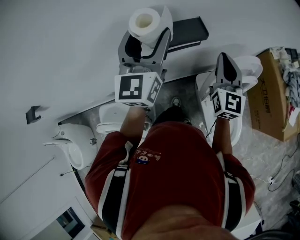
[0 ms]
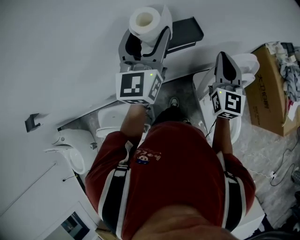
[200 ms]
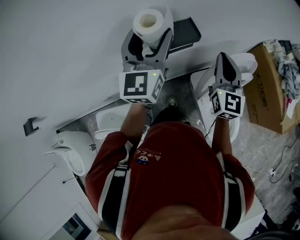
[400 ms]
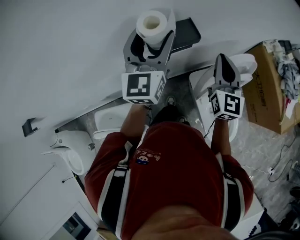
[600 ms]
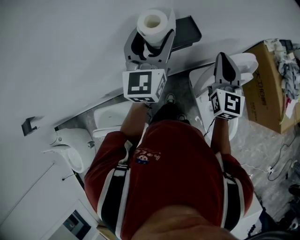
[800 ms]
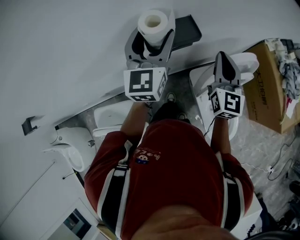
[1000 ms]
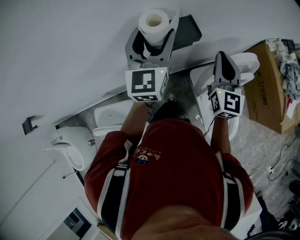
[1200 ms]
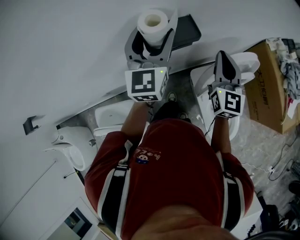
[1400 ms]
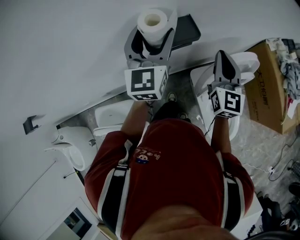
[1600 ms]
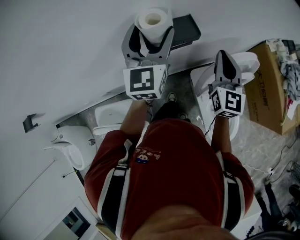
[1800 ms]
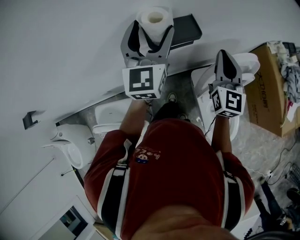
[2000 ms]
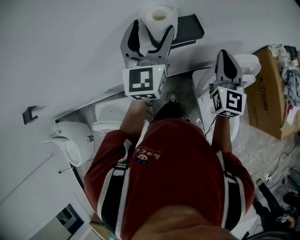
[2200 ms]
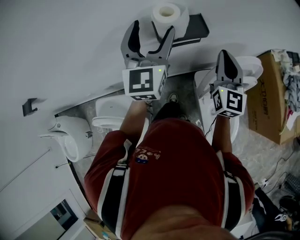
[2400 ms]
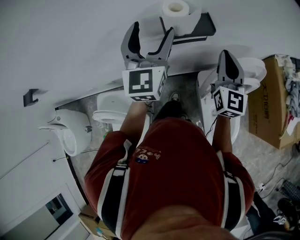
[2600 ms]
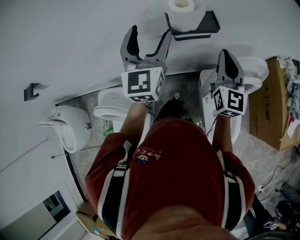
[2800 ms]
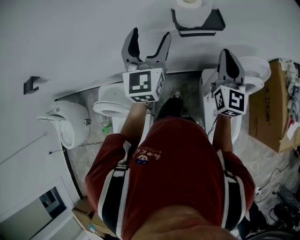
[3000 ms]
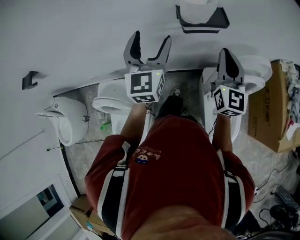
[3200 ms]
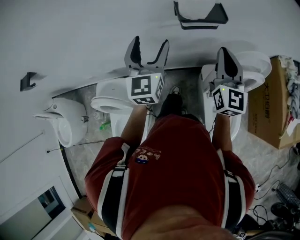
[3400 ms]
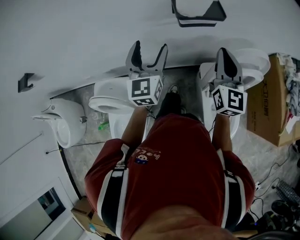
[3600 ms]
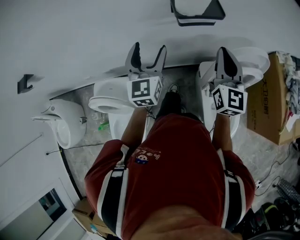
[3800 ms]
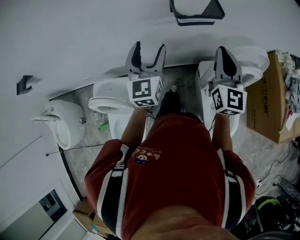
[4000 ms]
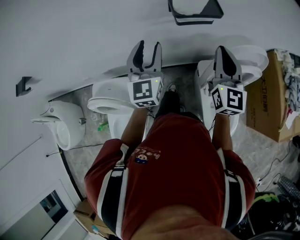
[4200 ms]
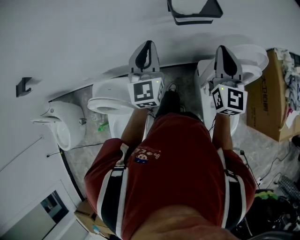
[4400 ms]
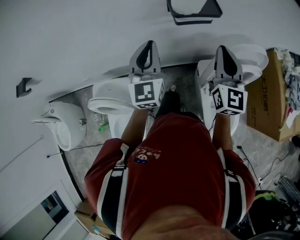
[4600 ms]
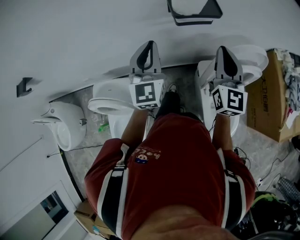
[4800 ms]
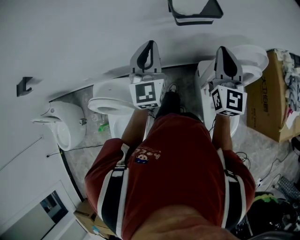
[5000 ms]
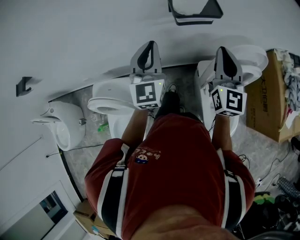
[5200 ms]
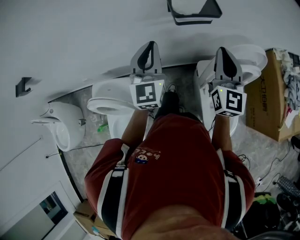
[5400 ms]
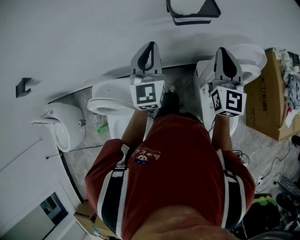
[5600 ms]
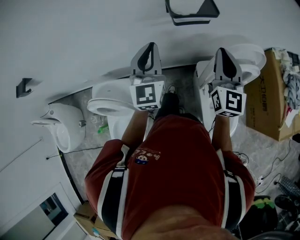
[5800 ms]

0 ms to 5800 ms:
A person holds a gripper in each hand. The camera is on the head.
0 ms to 1400 ms: The right gripper ends up approximately 5 cm from where it was, while the left gripper moves downward and forward, approximately 10 cm.
1400 ms to 2800 ms: The left gripper travels backward and to the left by roughly 15 cm. Meanwhile the right gripper moves backward and to the left, some 10 cm.
2800 ms to 4400 ms: The left gripper goes approximately 10 cm downward and backward, and closes, while the right gripper changes place by roughly 5 cm.
4400 ms to 5800 ms: There are only small adjustments of the grippers.

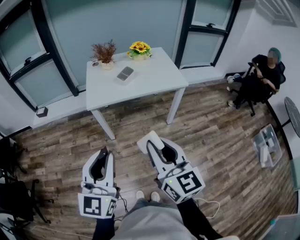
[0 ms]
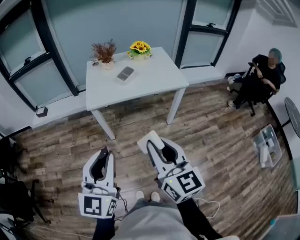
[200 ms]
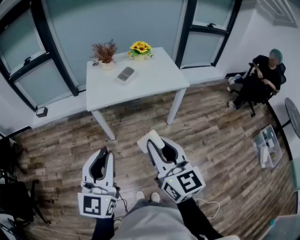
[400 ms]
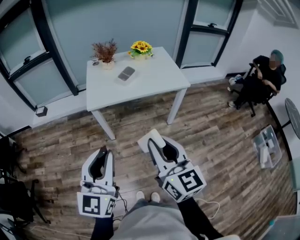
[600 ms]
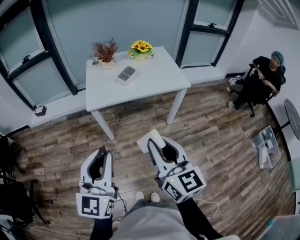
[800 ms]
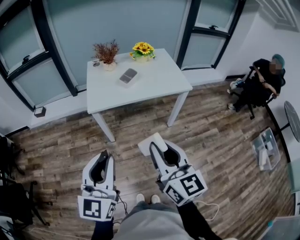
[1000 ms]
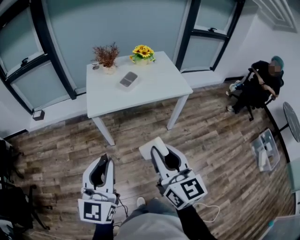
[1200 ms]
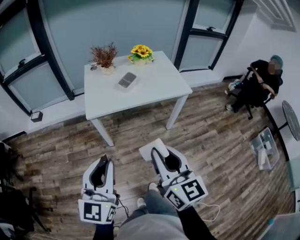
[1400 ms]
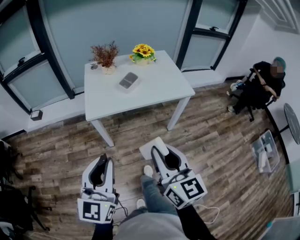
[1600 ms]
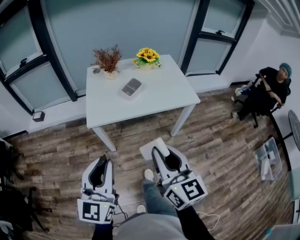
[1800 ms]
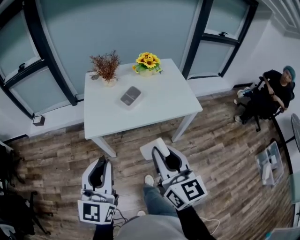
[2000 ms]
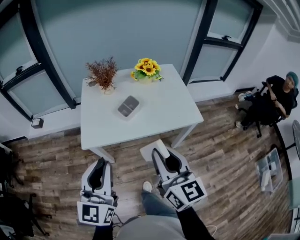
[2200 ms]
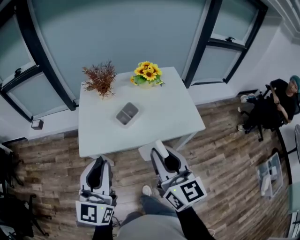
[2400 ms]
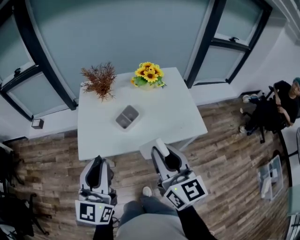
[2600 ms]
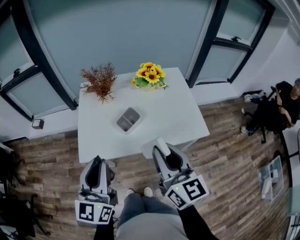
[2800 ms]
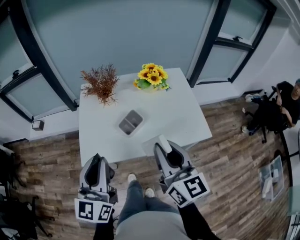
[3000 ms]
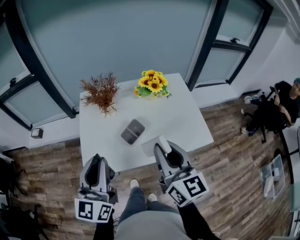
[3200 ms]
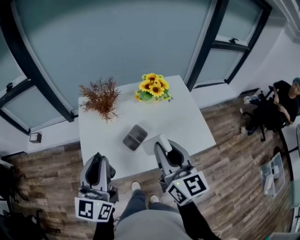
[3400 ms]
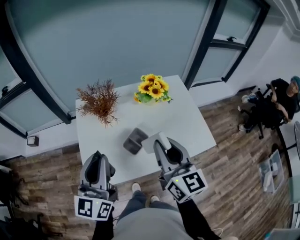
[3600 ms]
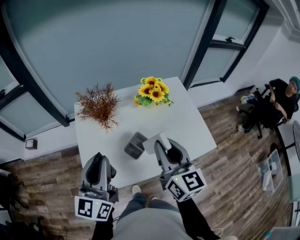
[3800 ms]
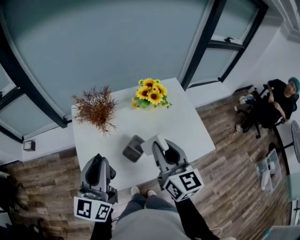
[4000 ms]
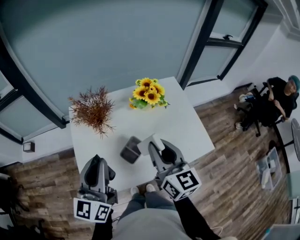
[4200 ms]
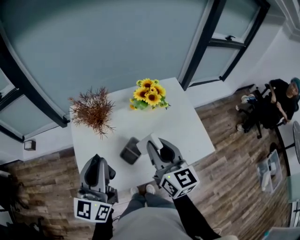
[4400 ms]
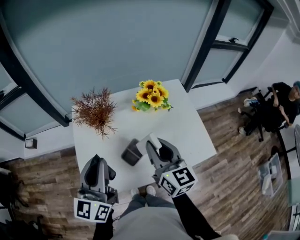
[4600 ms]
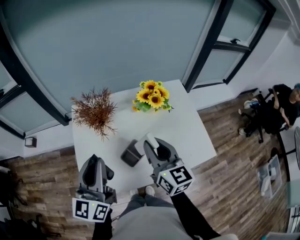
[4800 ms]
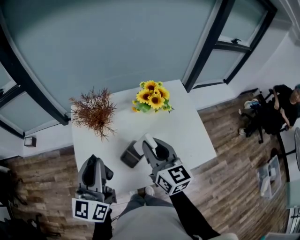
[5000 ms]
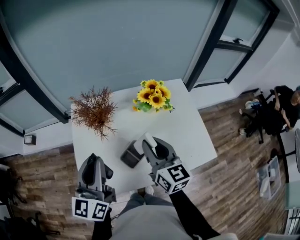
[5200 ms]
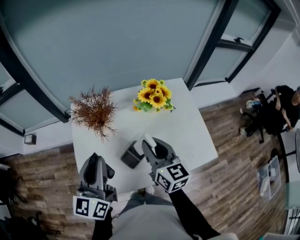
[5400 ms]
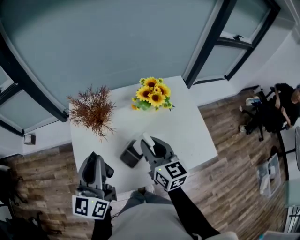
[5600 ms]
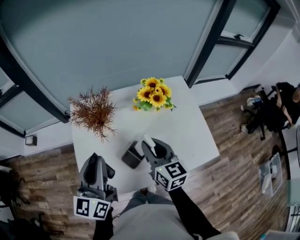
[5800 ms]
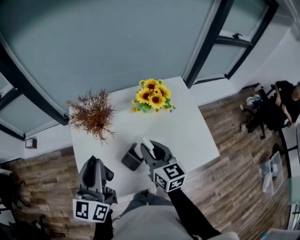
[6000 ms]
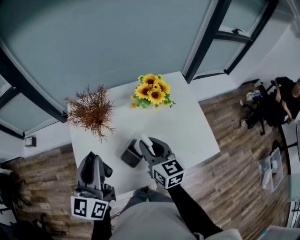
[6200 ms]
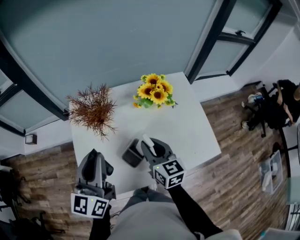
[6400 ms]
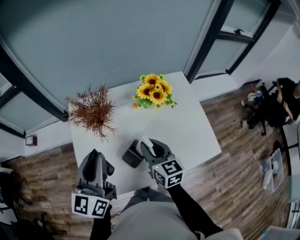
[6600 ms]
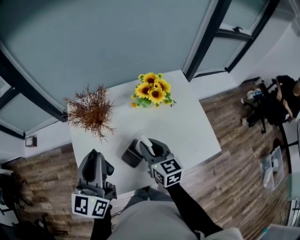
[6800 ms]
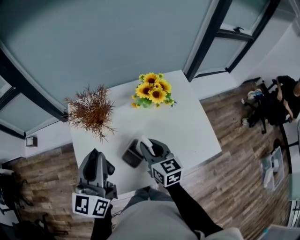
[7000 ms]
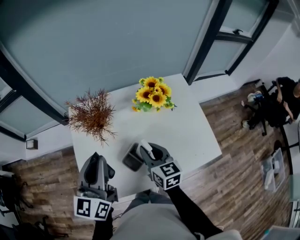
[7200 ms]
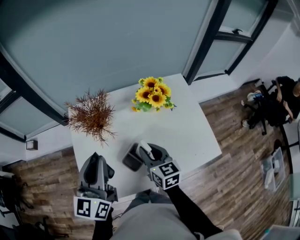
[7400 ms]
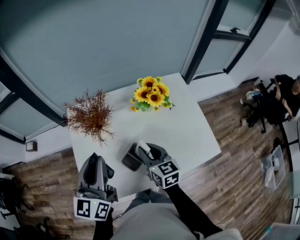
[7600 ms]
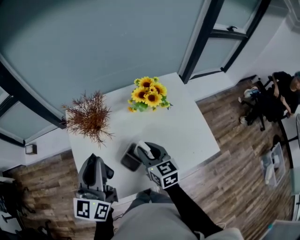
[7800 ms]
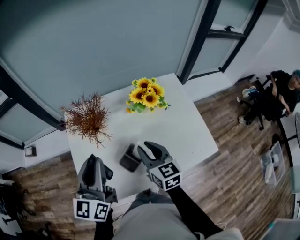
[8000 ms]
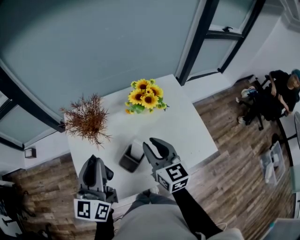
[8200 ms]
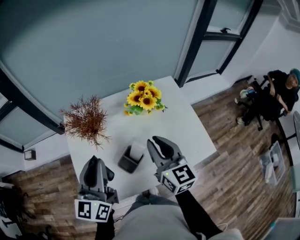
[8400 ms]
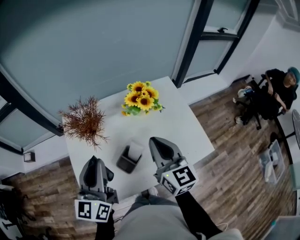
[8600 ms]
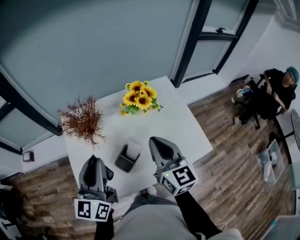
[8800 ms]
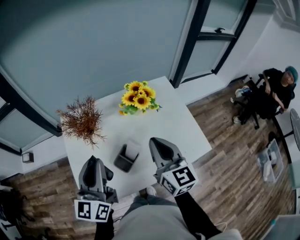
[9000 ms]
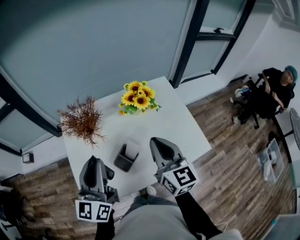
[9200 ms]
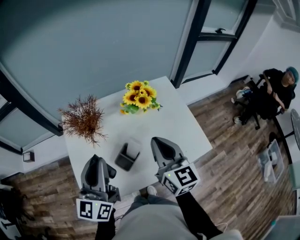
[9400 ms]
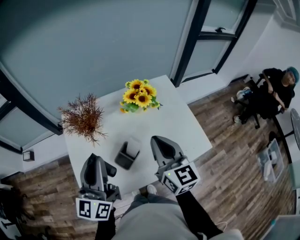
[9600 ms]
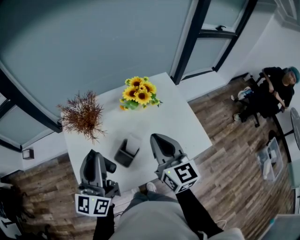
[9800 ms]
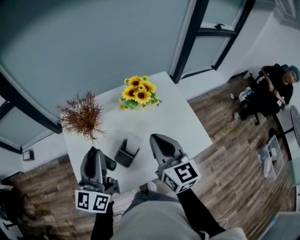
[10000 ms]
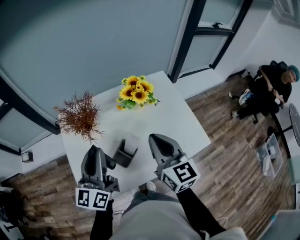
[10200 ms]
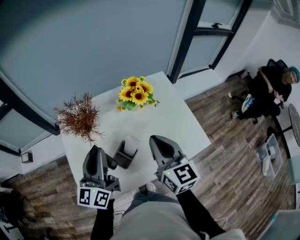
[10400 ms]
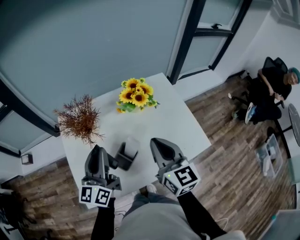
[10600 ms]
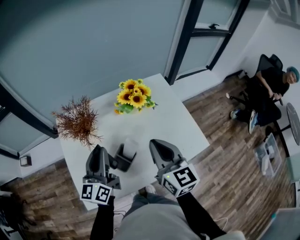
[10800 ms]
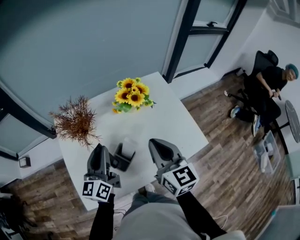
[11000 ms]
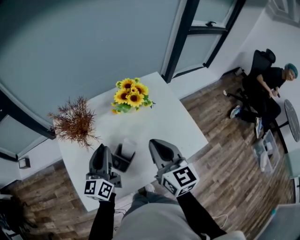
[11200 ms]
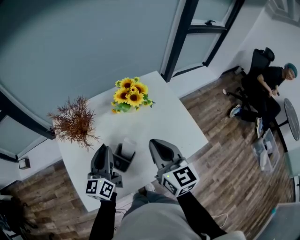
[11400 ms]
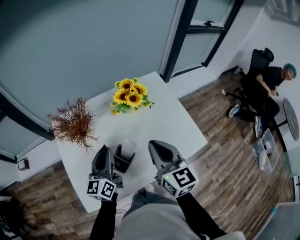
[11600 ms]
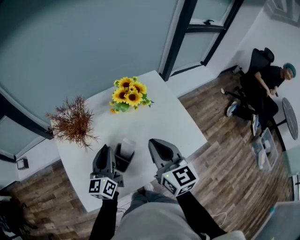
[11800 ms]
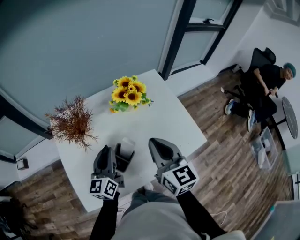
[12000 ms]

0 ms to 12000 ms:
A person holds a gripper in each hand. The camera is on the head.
0 ms to 1600 ms: The two grippers go roughly 10 cm forward.
1600 ms to 3000 ms: Both grippers travel together forward, approximately 35 cm.
3000 ms to 4400 ms: Both grippers move forward, about 15 cm.
4400 ms to 6000 ms: The right gripper goes roughly 10 cm downward and forward.
6000 ms to 7600 ms: The right gripper travels downward by approximately 5 cm.
7600 ms to 9000 ms: The right gripper moves upward and to the right, roughly 15 cm, changes its angle by some 20 degrees, and closes its fingers.
9000 ms to 10400 ms: The grippers move only a little.
10400 ms to 12000 ms: The left gripper travels downward by about 10 cm.

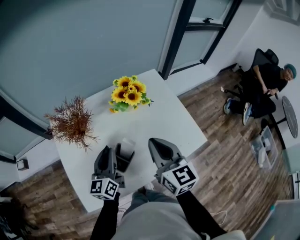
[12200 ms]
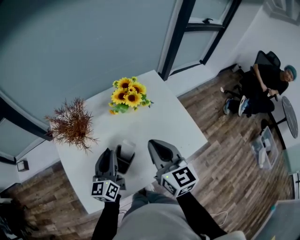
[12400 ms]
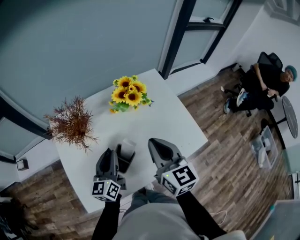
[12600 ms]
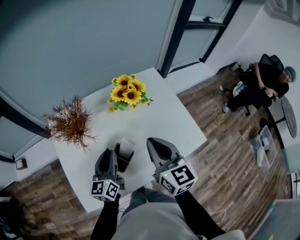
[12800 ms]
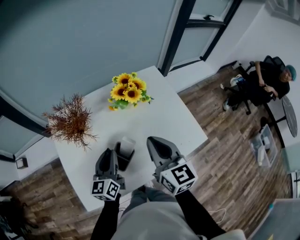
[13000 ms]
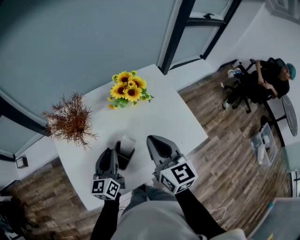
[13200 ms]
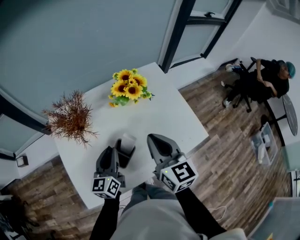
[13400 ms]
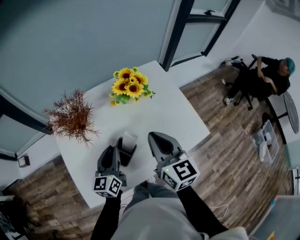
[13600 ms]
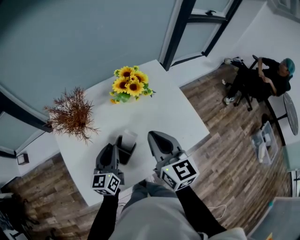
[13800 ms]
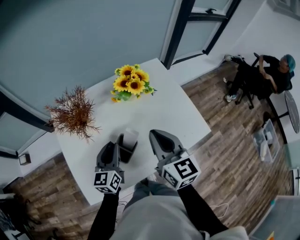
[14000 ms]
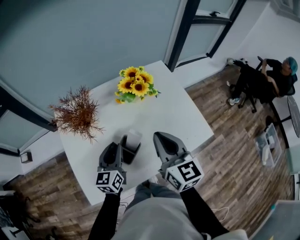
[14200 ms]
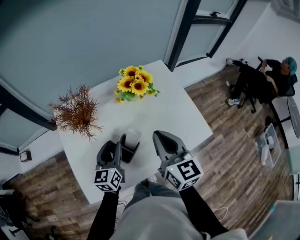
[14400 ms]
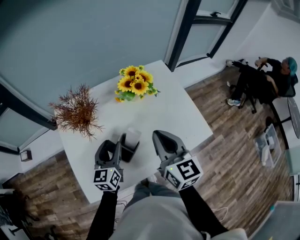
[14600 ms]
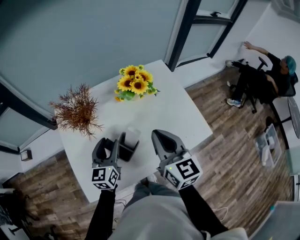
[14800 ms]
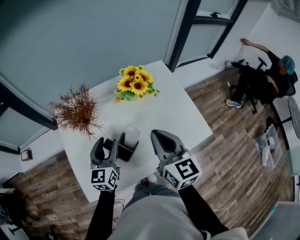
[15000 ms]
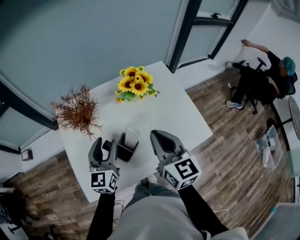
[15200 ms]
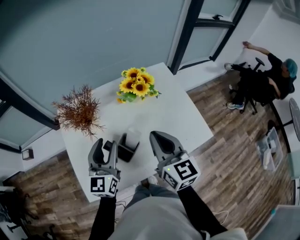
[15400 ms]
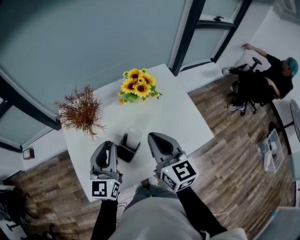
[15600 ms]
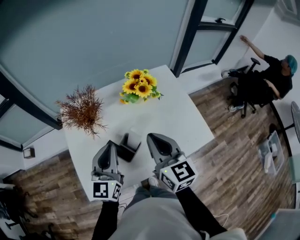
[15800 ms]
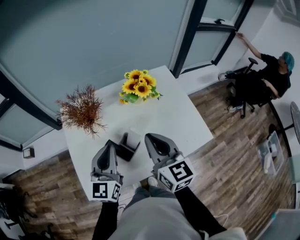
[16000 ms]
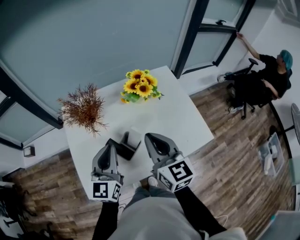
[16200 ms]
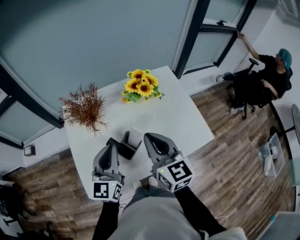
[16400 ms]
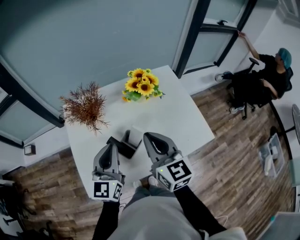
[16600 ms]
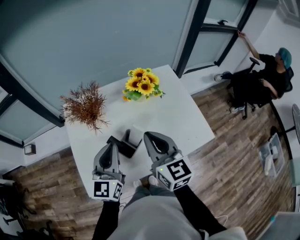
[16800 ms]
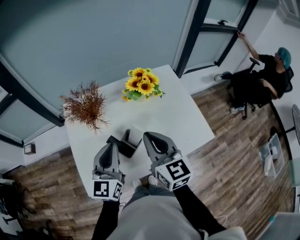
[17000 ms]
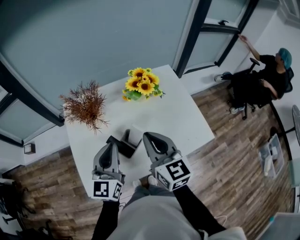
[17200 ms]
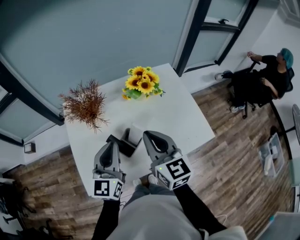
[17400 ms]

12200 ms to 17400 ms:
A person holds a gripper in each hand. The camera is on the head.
12200 ms to 14000 ms: The grippers make only small movements.
14000 ms to 15600 ms: The left gripper goes roughly 10 cm upward, and opens, then closes again.
15600 ms to 17400 ms: The grippers make only small movements.

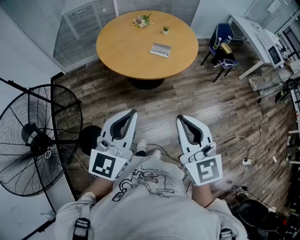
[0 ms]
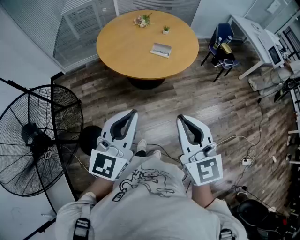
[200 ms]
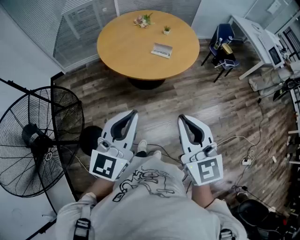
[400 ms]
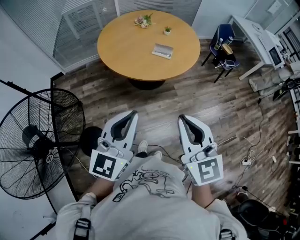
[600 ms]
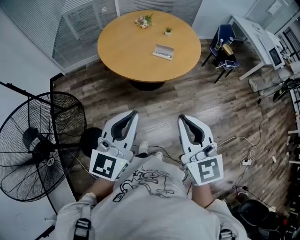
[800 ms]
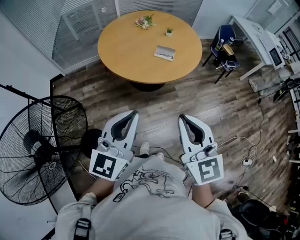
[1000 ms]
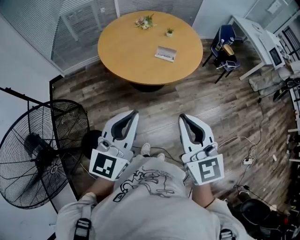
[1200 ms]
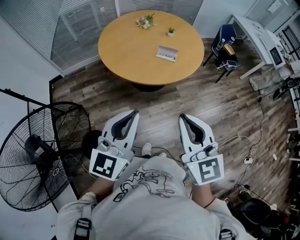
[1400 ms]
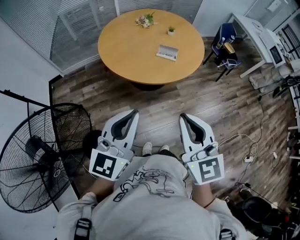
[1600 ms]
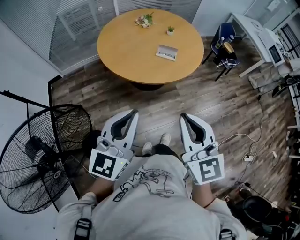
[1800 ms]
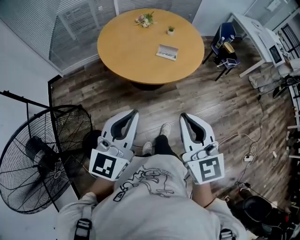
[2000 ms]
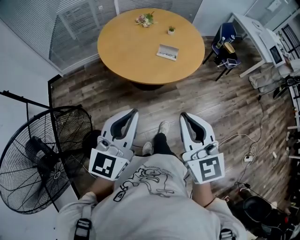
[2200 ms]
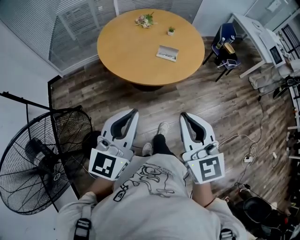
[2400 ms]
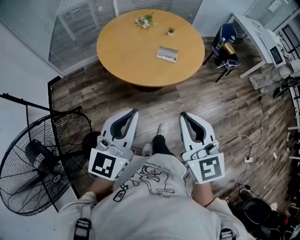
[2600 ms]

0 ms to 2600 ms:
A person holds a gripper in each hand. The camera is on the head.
0 ms to 1200 ms: The left gripper moves to the left and forward, about 10 cm; the right gripper travels forward and to the left by roughly 10 cm.
1200 ms to 2600 ms: The left gripper changes place by some 5 cm, while the right gripper changes place by approximately 5 cm.
